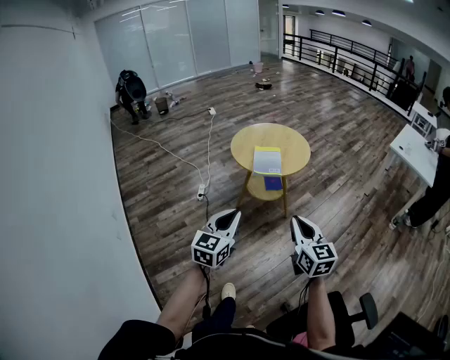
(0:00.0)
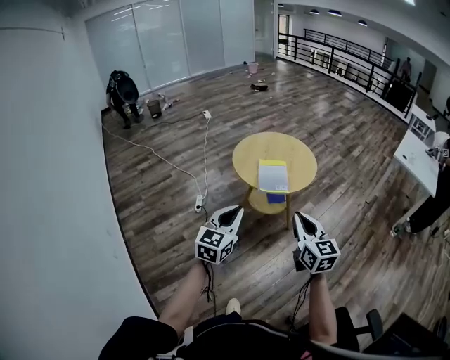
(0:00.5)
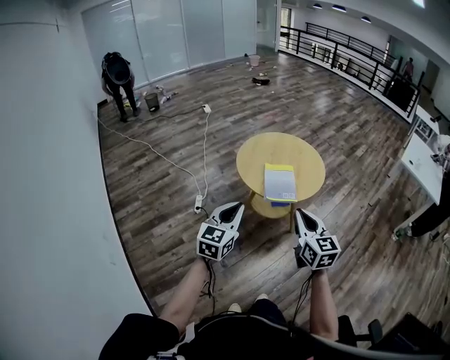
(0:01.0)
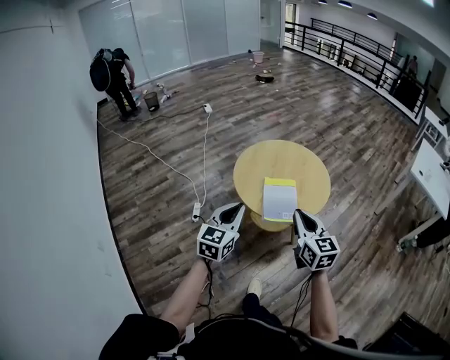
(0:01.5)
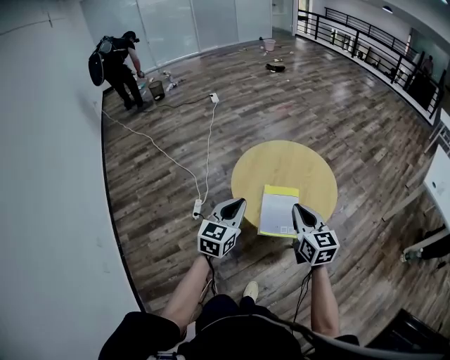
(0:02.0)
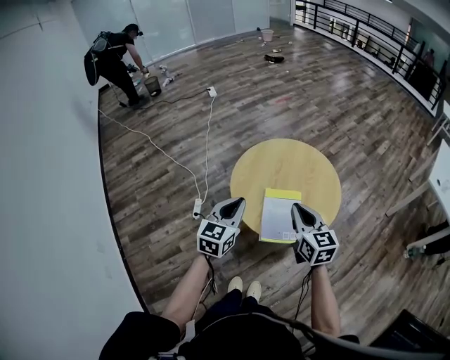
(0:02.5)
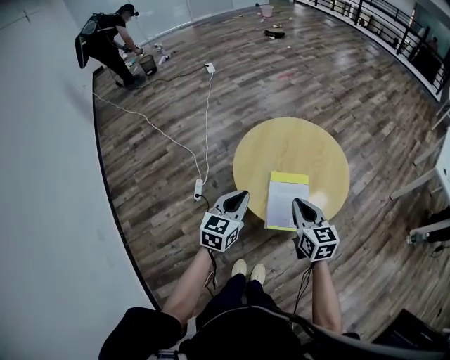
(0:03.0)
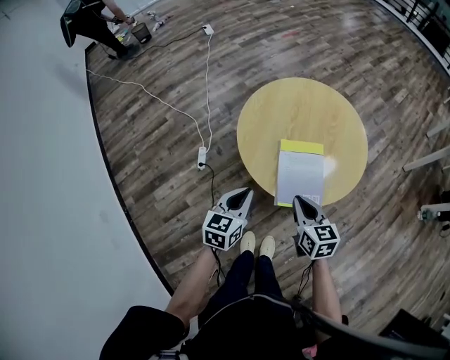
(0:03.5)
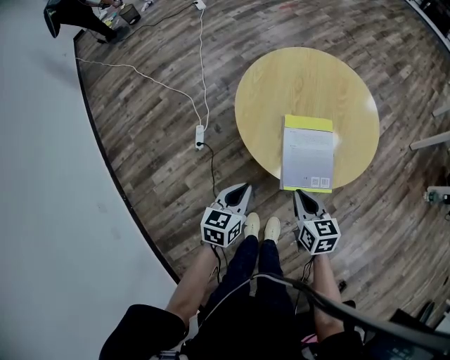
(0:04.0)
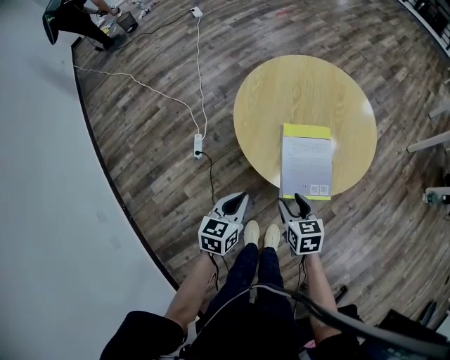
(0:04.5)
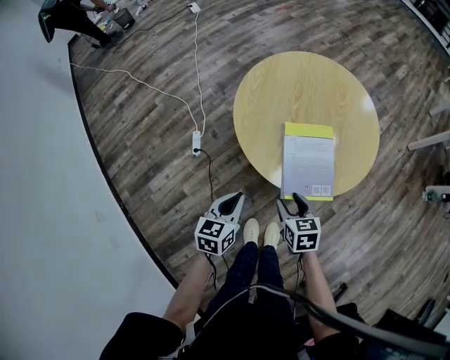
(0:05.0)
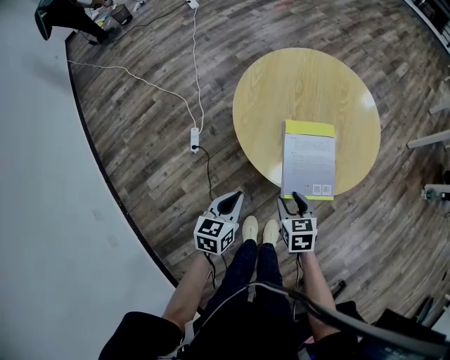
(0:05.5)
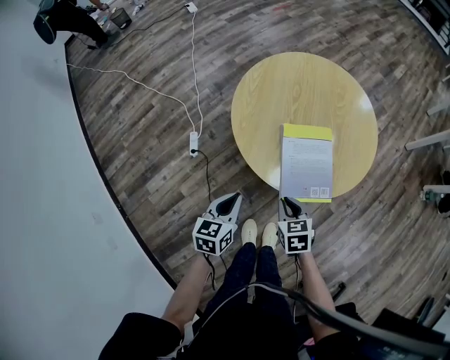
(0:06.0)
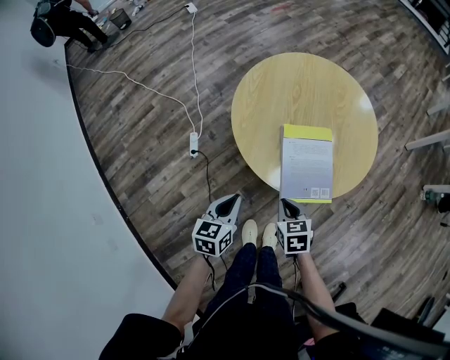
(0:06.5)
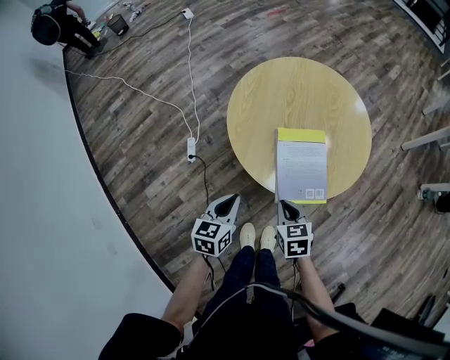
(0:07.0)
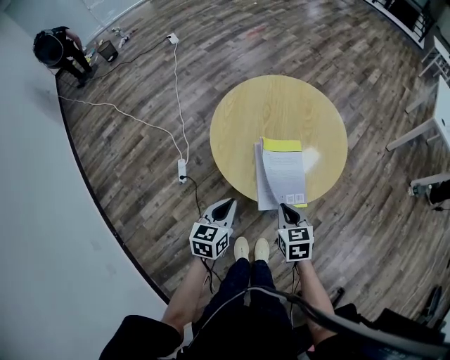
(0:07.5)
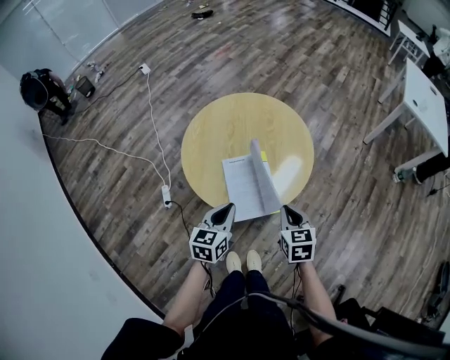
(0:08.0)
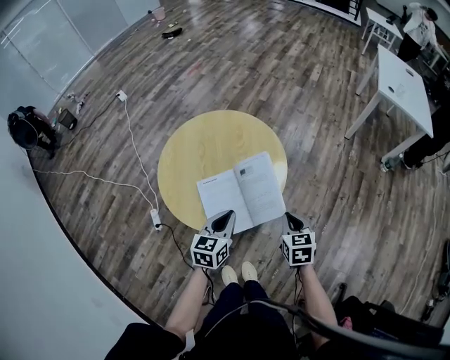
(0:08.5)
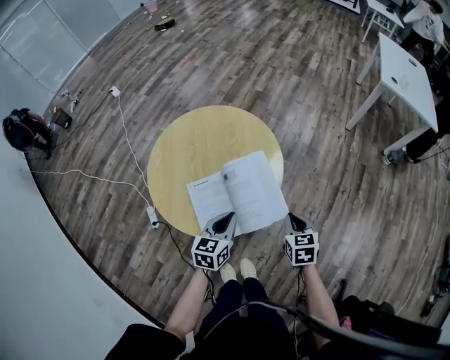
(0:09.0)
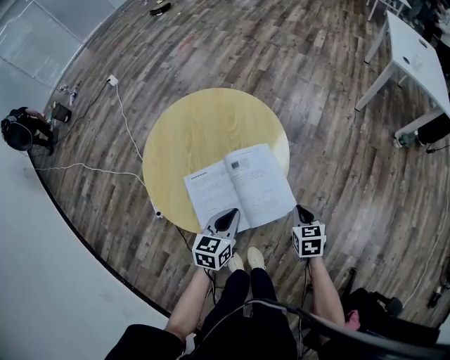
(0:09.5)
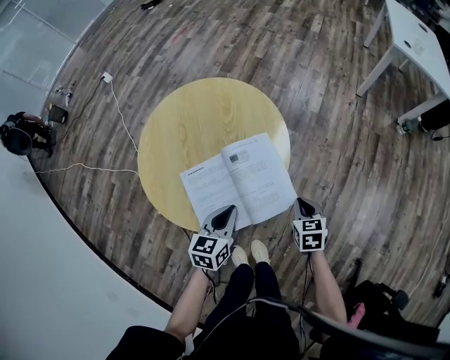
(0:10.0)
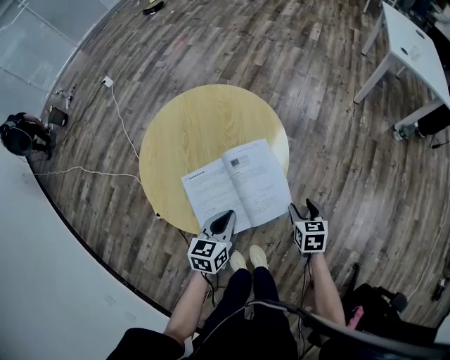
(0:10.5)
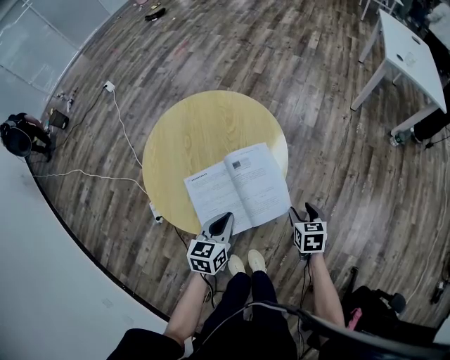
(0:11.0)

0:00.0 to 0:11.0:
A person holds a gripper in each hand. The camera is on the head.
0:00.0 to 0:02.0: The two grippers travel together, forward, about 50 cm.
0:02.0 to 0:03.5: Both grippers move downward, roughly 15 cm. The right gripper rotates some 20 degrees.
0:03.5 to 0:05.5: The two grippers go about 10 cm downward. The right gripper rotates some 20 degrees, and opens its fingers.
0:05.5 to 0:07.5: The left gripper shifts roughly 5 cm upward. Meanwhile the right gripper moves upward and to the right, approximately 10 cm, and closes its fingers.
0:07.5 to 0:09.0: The left gripper shifts some 20 cm to the right and forward, while the right gripper is displaced to the right by roughly 25 cm, and turns by approximately 20 degrees.
0:09.0 to 0:11.0: The right gripper goes some 5 cm downward, and opens its fingers.

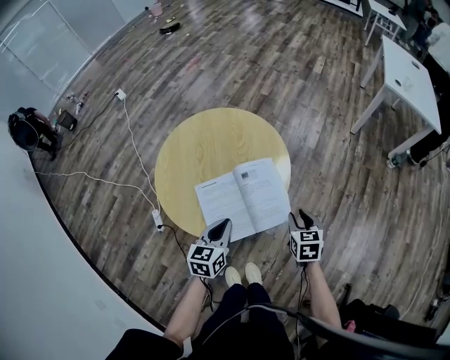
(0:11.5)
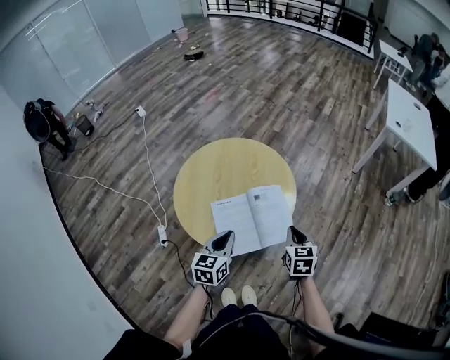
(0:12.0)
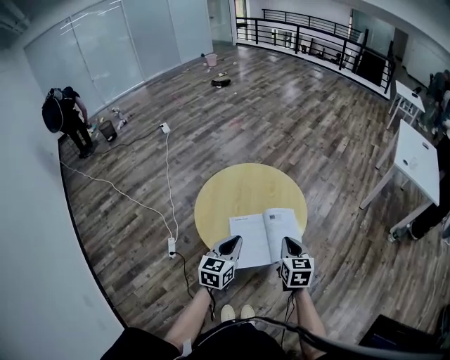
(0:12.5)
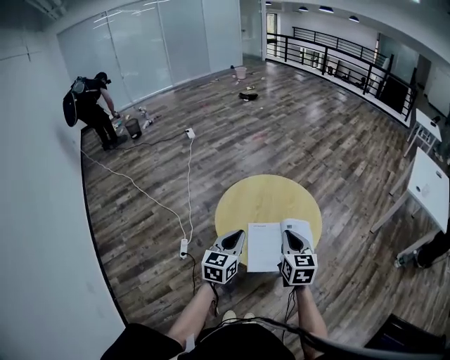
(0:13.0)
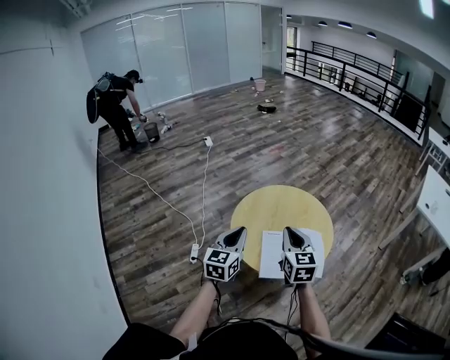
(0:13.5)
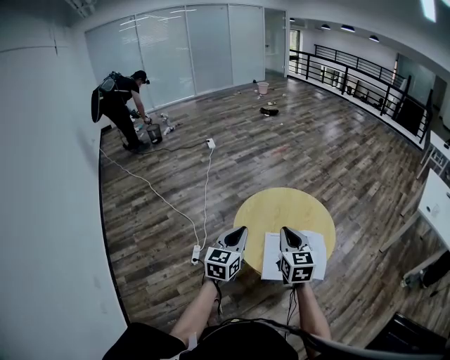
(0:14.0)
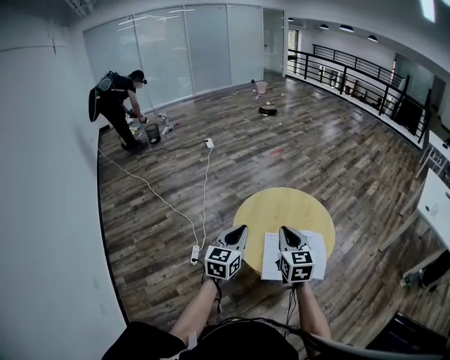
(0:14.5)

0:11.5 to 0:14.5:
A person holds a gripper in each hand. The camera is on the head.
0:11.5 to 0:13.0: Both grippers travel together upward and to the left, about 25 cm. The right gripper rotates approximately 30 degrees, and closes its fingers; the left gripper turns by approximately 20 degrees.
0:13.0 to 0:14.5: Both grippers travel together to the left, about 10 cm.

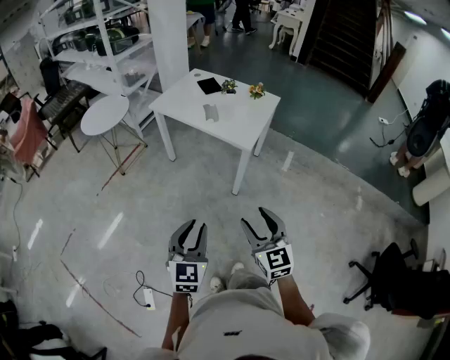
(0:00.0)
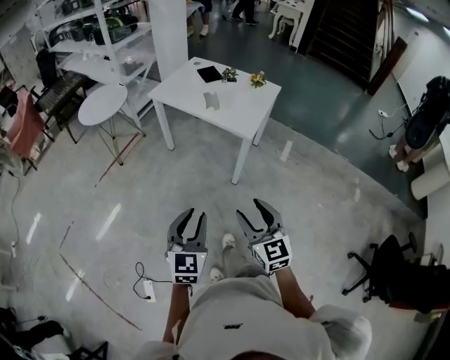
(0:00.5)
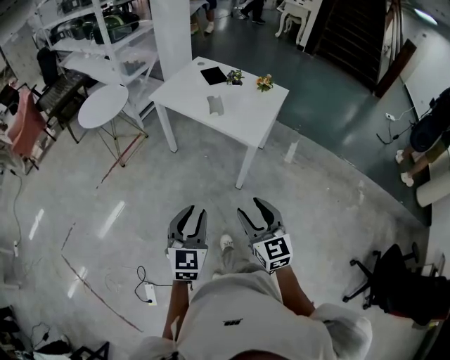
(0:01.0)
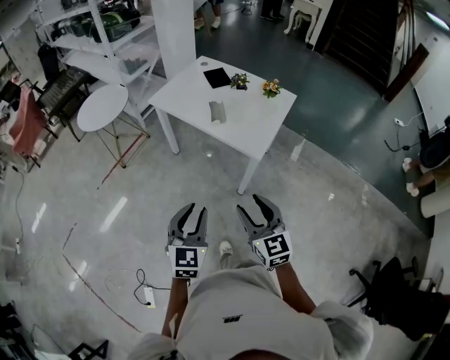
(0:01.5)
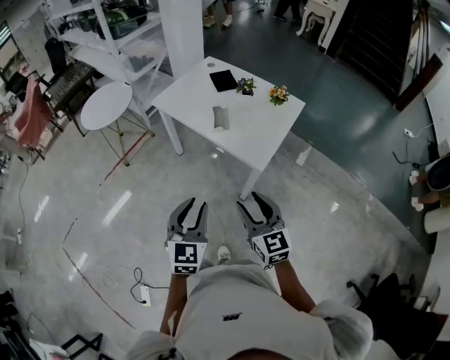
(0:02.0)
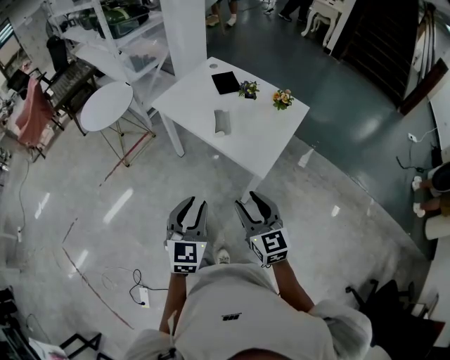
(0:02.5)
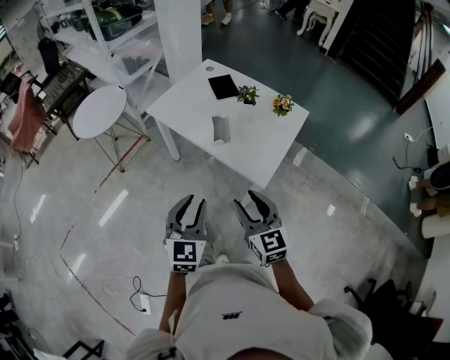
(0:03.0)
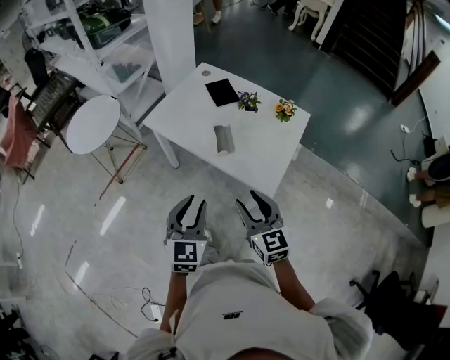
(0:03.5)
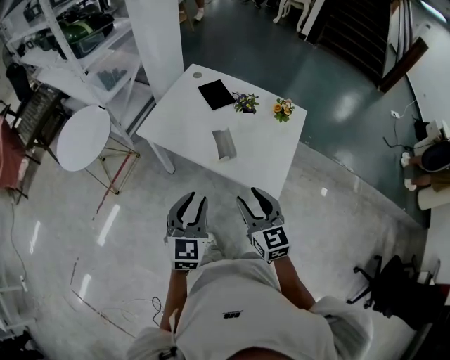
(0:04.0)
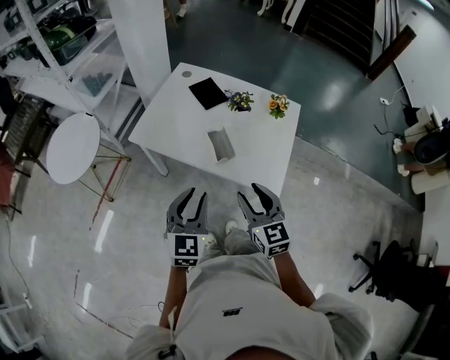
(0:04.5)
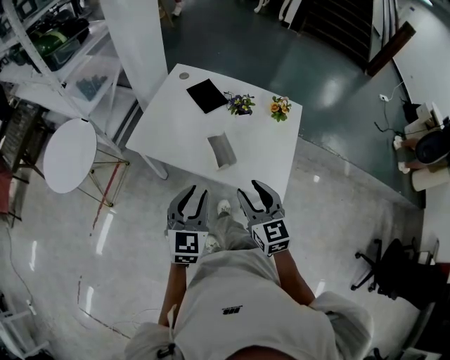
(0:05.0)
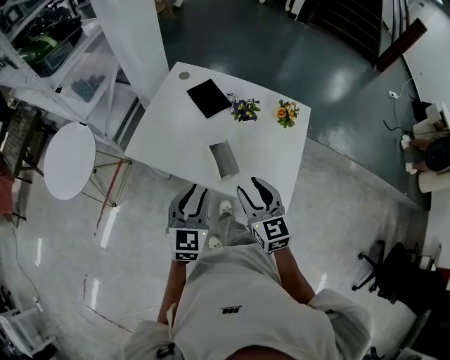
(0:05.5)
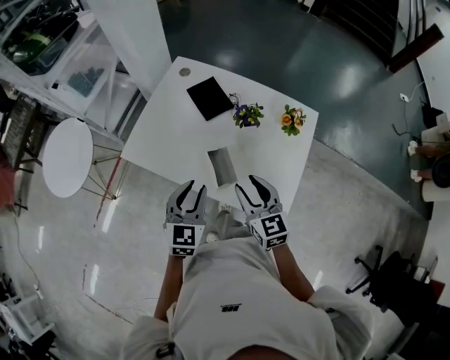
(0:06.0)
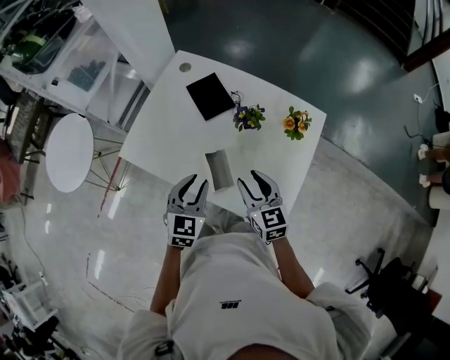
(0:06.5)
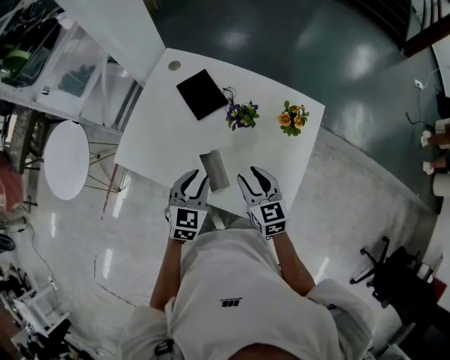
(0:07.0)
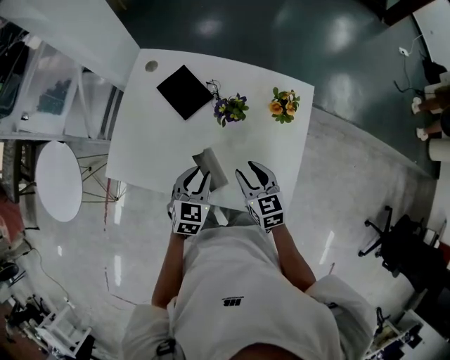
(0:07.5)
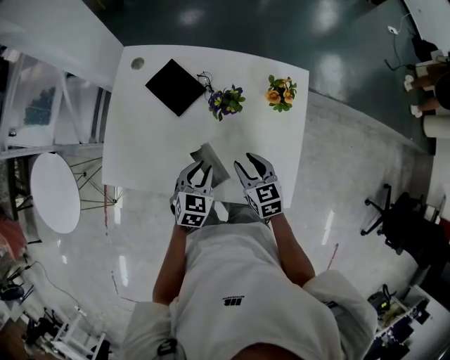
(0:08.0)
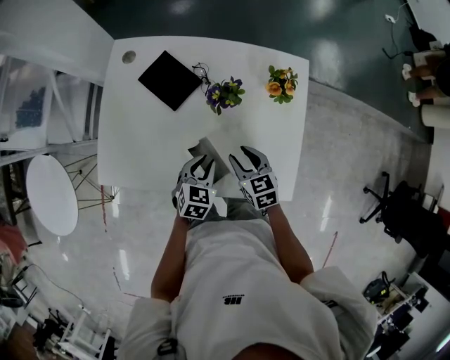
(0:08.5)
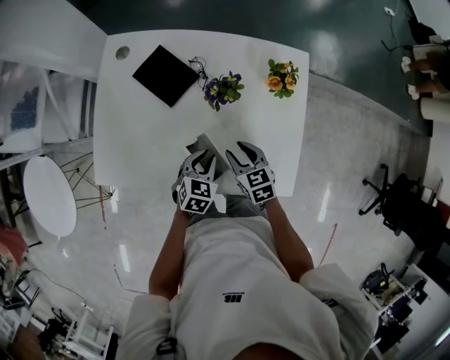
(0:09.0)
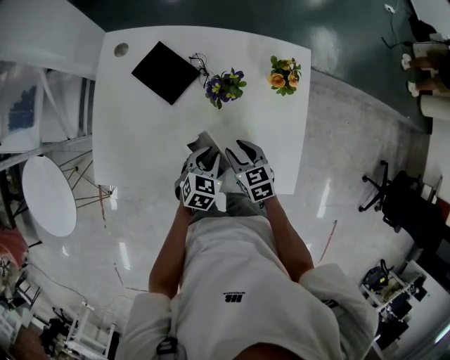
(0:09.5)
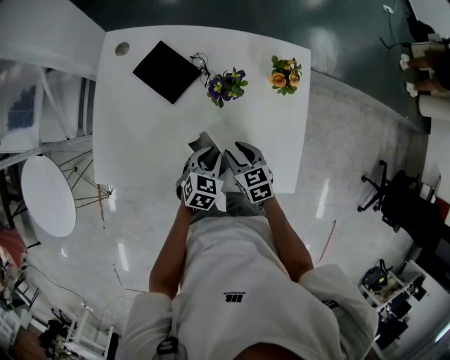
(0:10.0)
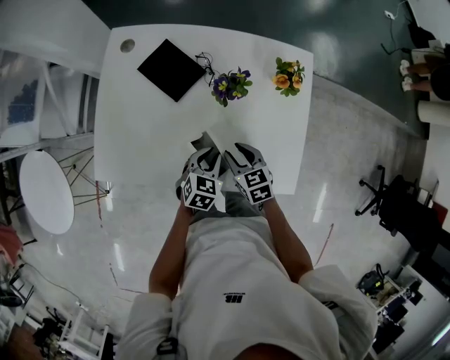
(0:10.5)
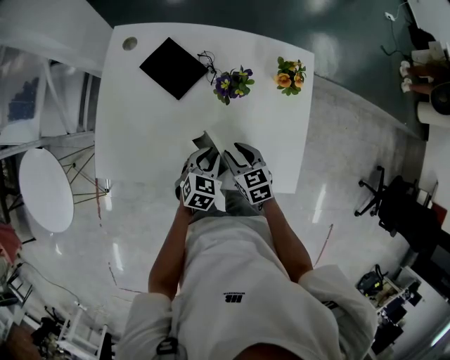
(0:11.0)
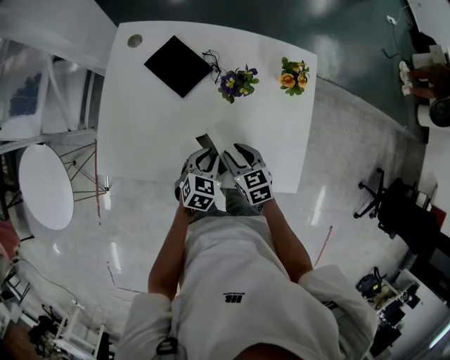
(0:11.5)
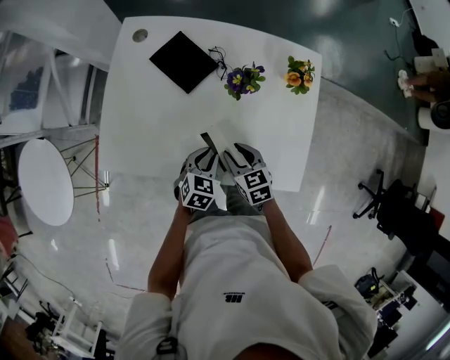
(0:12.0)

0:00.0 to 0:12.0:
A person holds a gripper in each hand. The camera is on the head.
0:00.0 to 0:02.0: The grippers both shift forward by approximately 25 cm.
0:02.0 to 0:04.0: The two grippers go roughly 25 cm forward.
0:04.0 to 0:06.0: Both grippers move forward, roughly 25 cm.
0:06.0 to 0:08.0: The right gripper is displaced downward and forward by about 15 cm, and changes its angle by about 20 degrees; the left gripper goes approximately 20 cm downward, forward and to the right, and turns by about 30 degrees.
0:08.0 to 0:10.0: Both grippers move downward, roughly 5 cm.
0:10.0 to 0:12.0: The left gripper shifts by roughly 5 cm. Meanwhile the right gripper ends up roughly 5 cm from where it was.

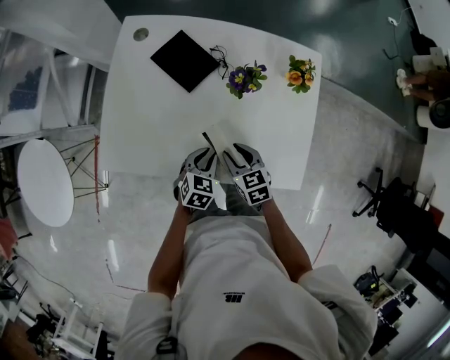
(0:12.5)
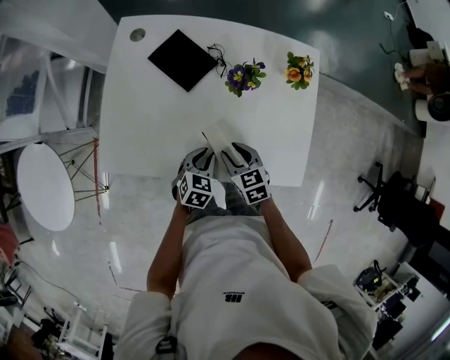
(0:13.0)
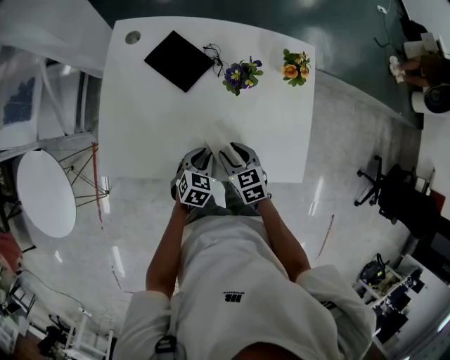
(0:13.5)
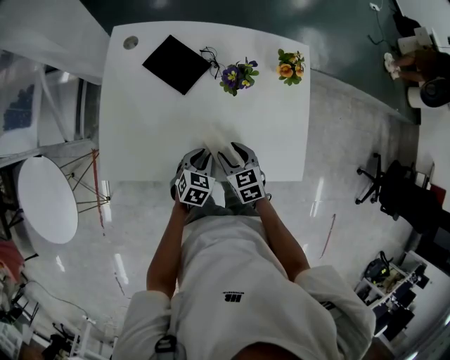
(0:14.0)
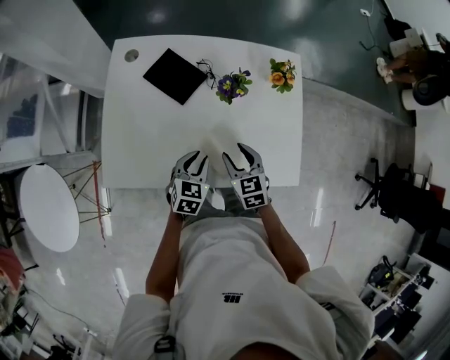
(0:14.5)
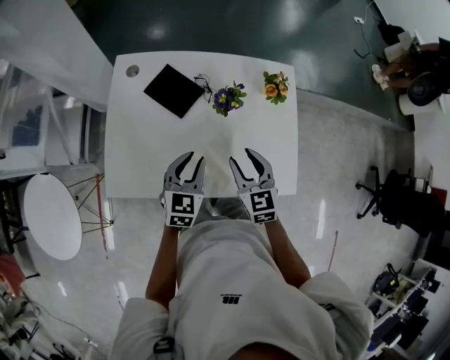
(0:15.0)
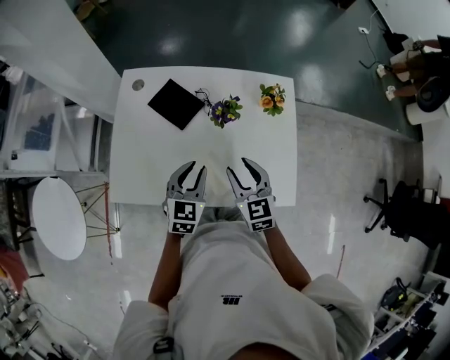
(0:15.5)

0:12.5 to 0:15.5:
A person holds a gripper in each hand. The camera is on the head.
0:12.5 to 0:14.0: There are only small adjustments of the grippers.
0:14.0 to 0:15.5: Both grippers travel together upward, about 15 cm. The right gripper swivels approximately 20 degrees. Meanwhile the left gripper changes its angle by about 20 degrees.
